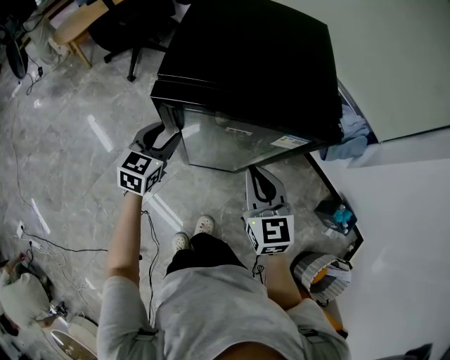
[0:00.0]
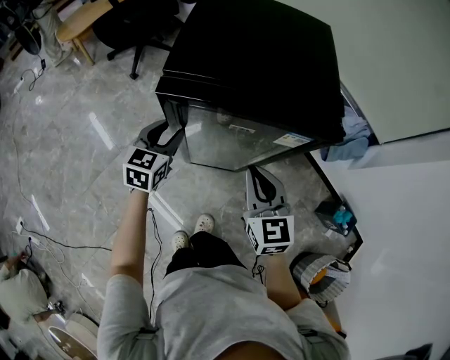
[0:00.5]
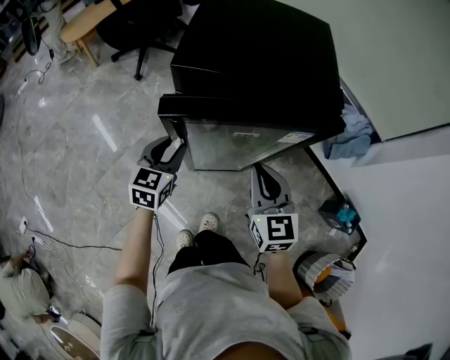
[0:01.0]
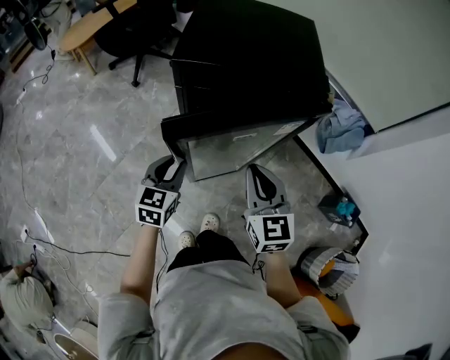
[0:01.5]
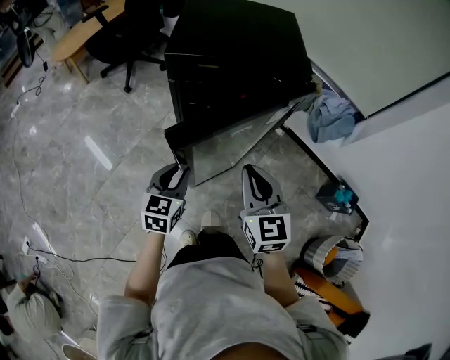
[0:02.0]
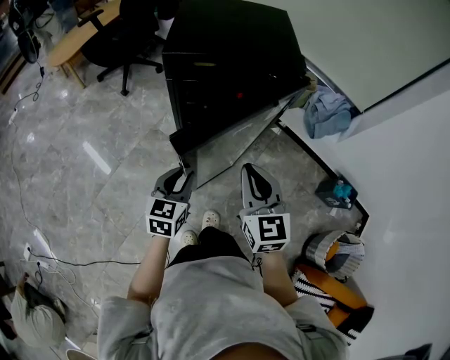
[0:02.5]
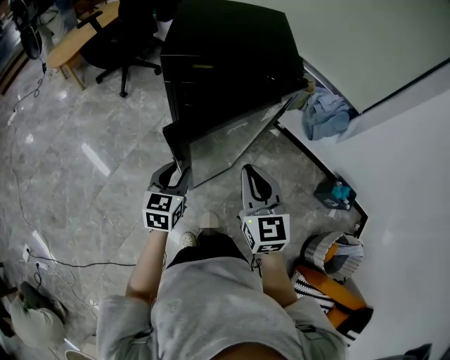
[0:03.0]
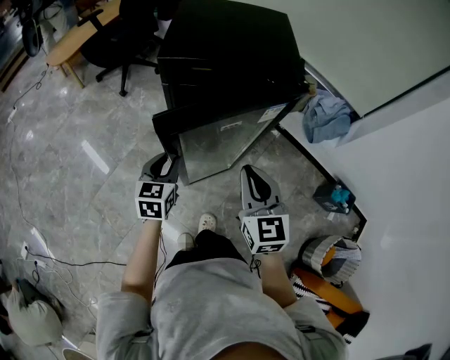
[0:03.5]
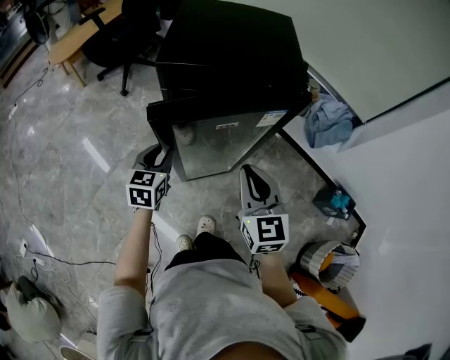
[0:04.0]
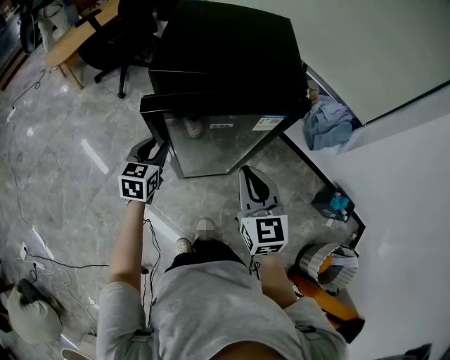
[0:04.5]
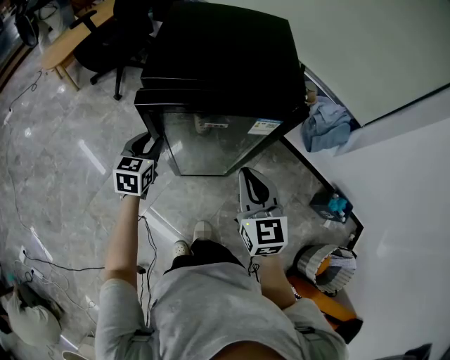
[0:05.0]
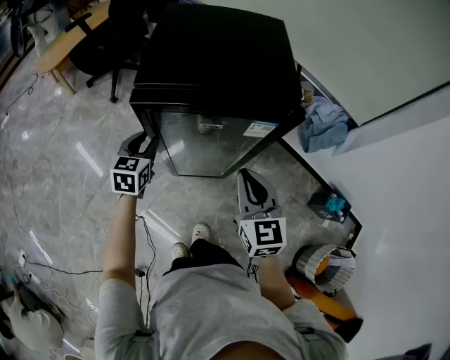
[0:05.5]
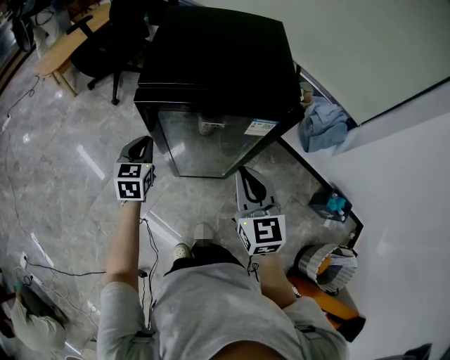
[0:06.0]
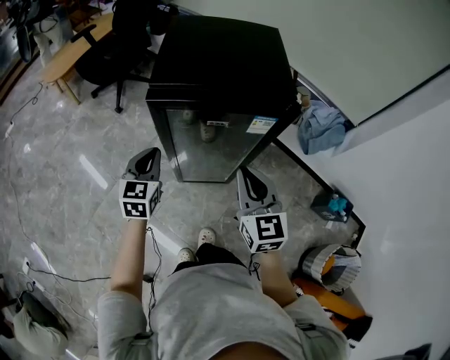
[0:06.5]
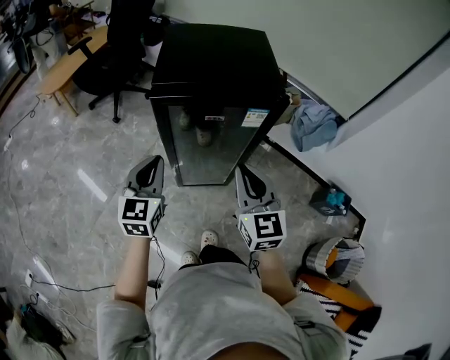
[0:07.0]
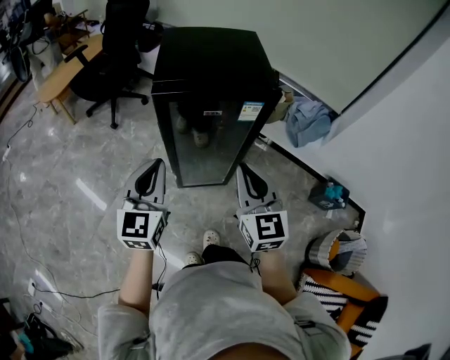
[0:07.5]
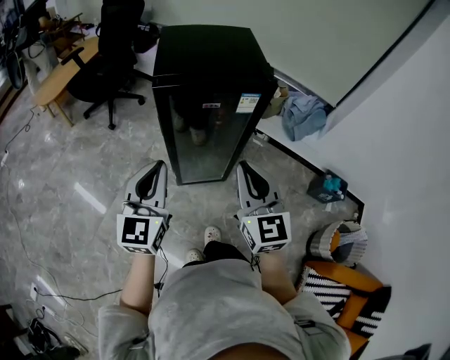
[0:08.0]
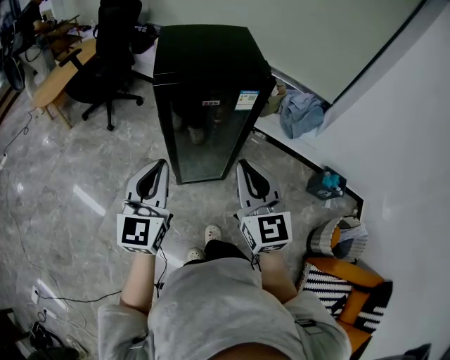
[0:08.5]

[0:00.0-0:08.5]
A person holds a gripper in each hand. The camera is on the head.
0:00.0 to 0:02.0: The right gripper moves backward, approximately 15 cm; the left gripper shifts roughly 20 cm backward.
0:02.0 to 0:04.0: The left gripper shifts some 10 cm forward.
0:04.0 to 0:06.5: The left gripper is displaced upward by some 5 cm, travels forward and back again, some 10 cm each way, and closes.
0:06.5 to 0:08.5: Both grippers move backward and upward, approximately 20 cm. The left gripper changes its angle by approximately 30 degrees.

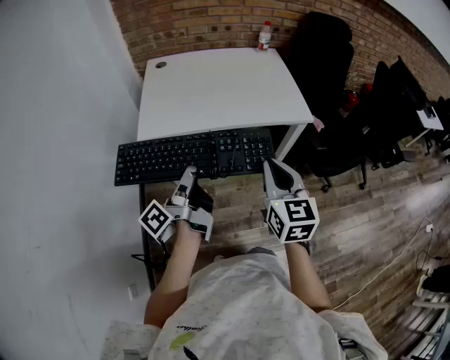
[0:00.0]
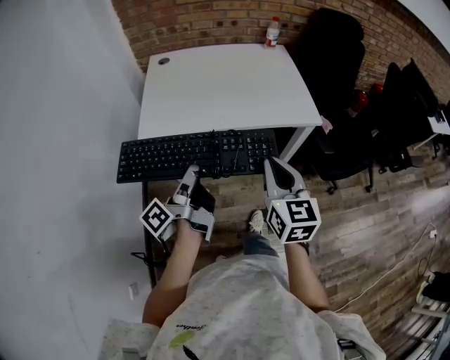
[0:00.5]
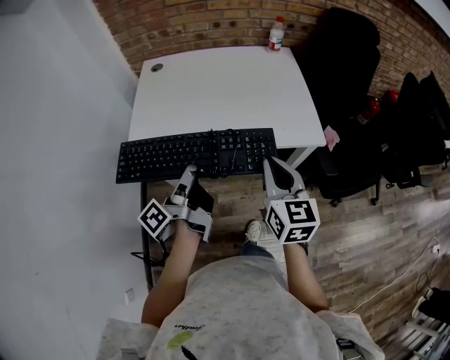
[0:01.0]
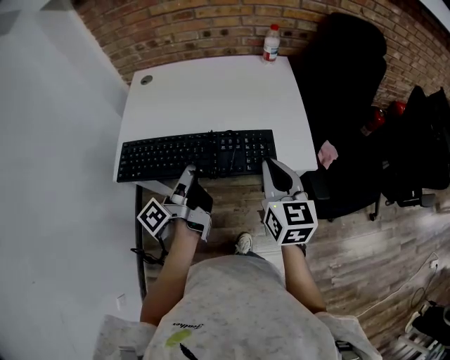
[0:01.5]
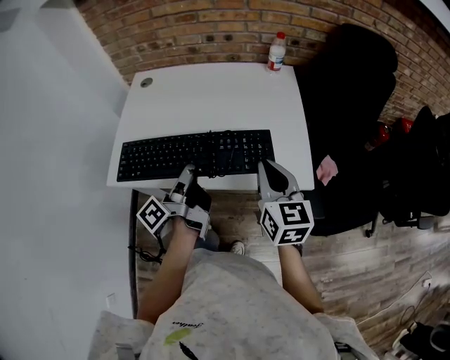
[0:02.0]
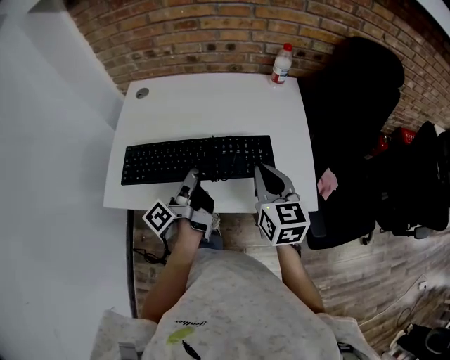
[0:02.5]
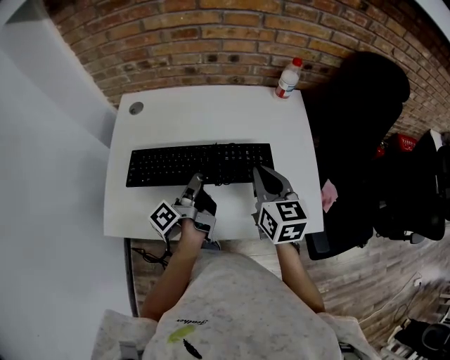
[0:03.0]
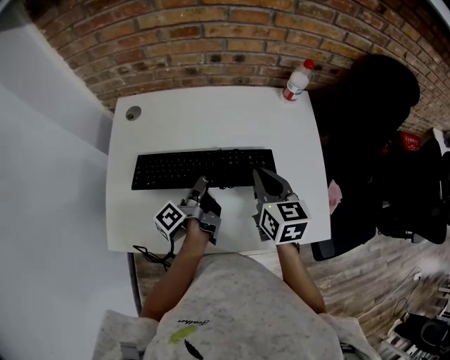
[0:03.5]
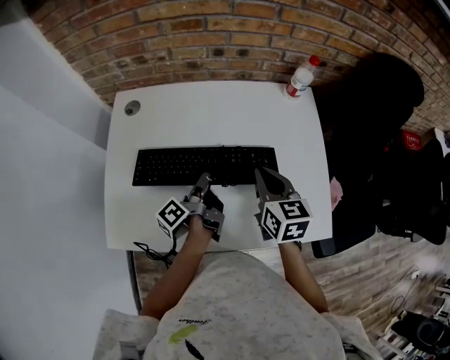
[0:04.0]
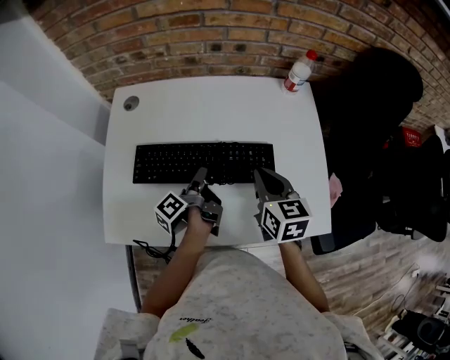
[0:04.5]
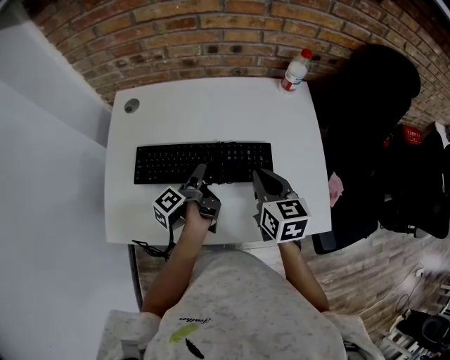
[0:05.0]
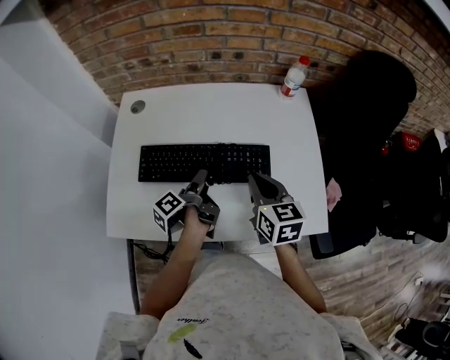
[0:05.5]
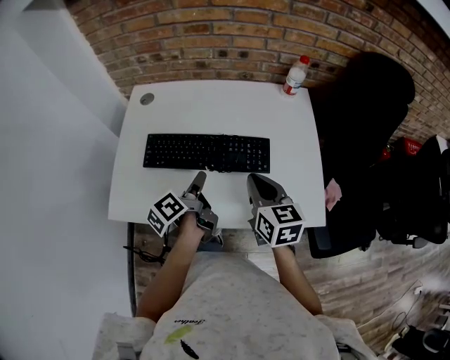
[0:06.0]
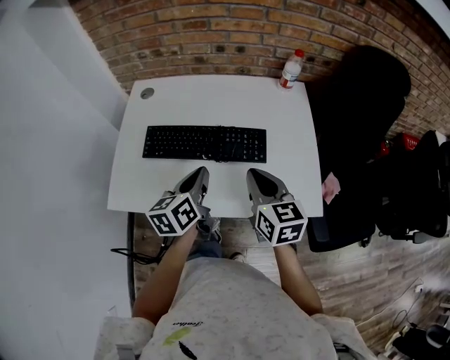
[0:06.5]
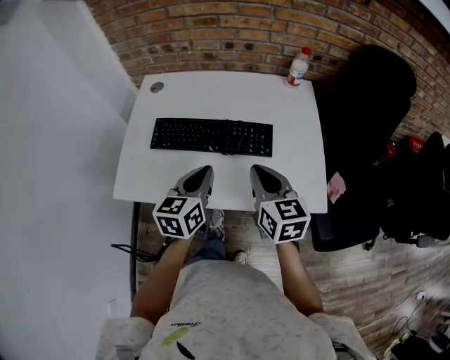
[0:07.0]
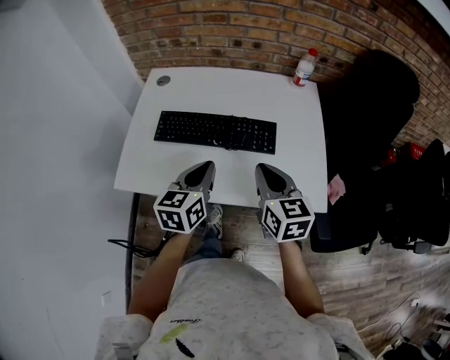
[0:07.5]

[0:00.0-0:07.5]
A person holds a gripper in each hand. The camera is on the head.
0:00.0 to 0:02.0: The right gripper ends up roughly 40 cm from where it was.
0:02.0 to 0:04.0: The right gripper shifts by roughly 30 cm.
0:04.0 to 0:05.5: The right gripper changes place by roughly 5 cm.
0:05.5 to 0:07.5: The right gripper ends up approximately 15 cm from where it was.

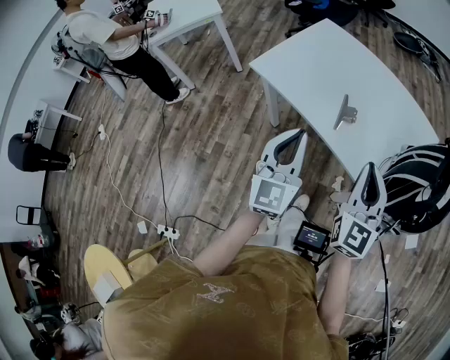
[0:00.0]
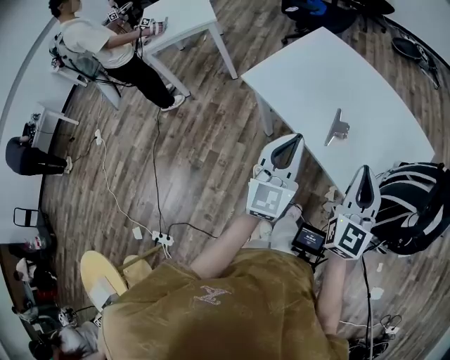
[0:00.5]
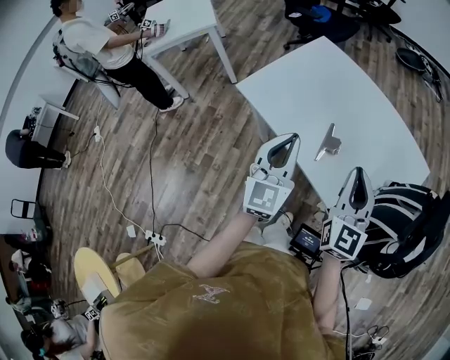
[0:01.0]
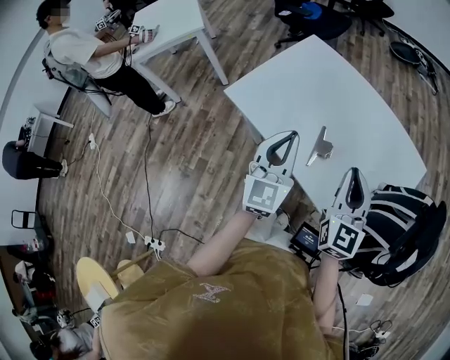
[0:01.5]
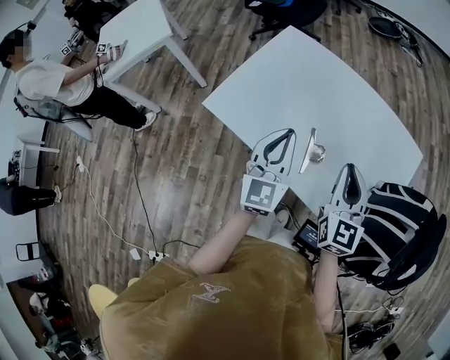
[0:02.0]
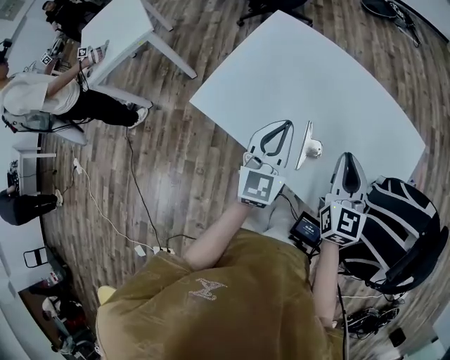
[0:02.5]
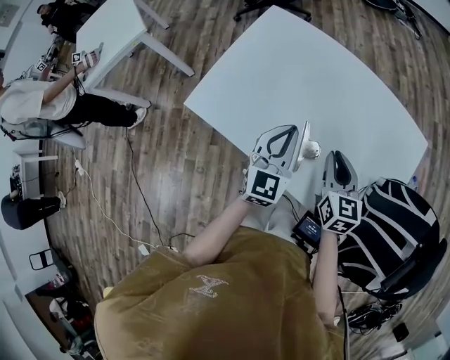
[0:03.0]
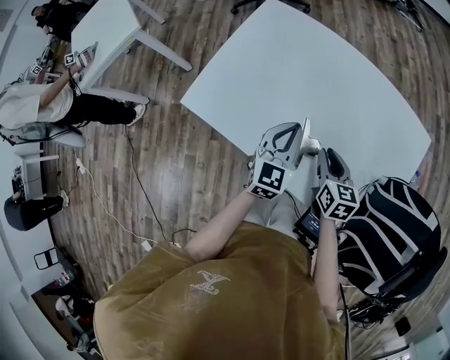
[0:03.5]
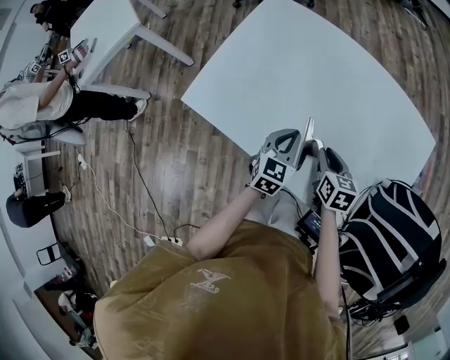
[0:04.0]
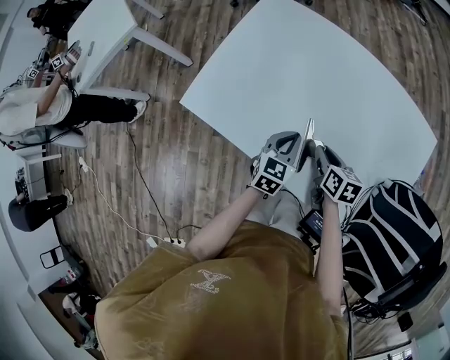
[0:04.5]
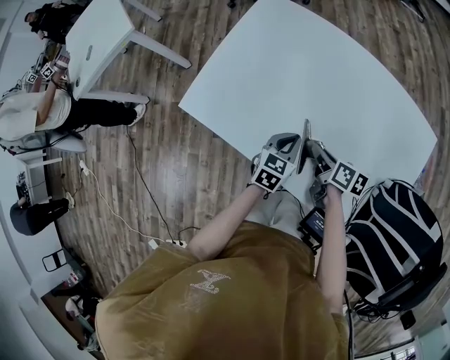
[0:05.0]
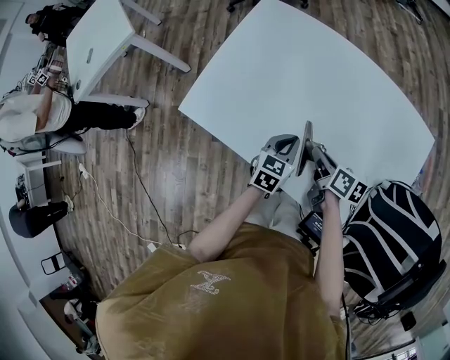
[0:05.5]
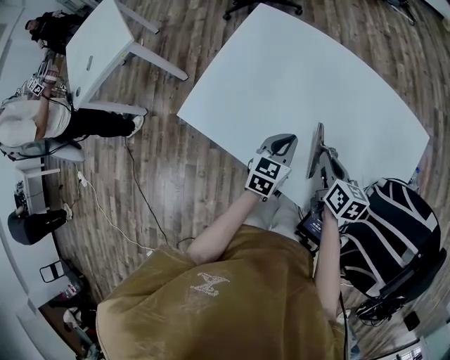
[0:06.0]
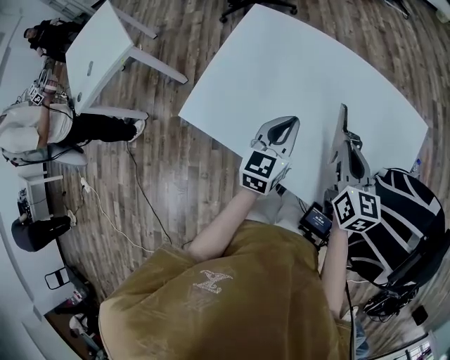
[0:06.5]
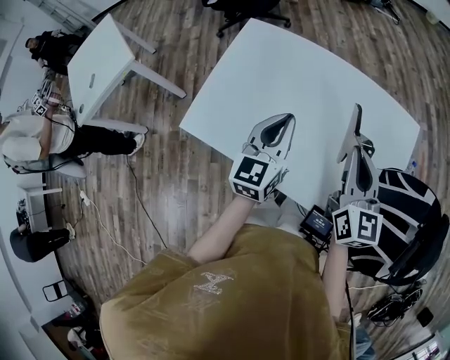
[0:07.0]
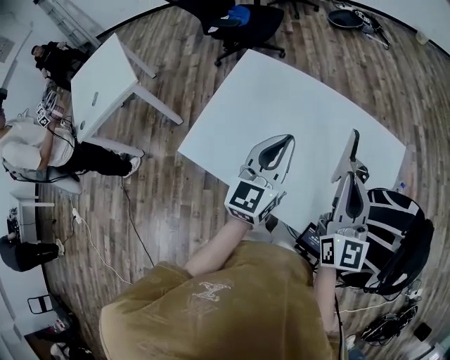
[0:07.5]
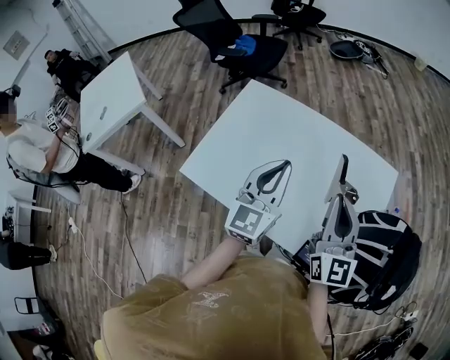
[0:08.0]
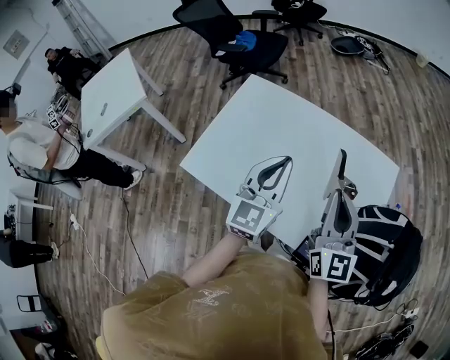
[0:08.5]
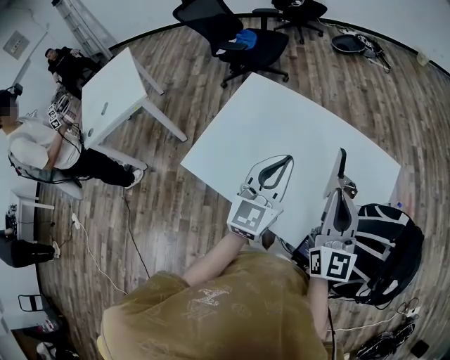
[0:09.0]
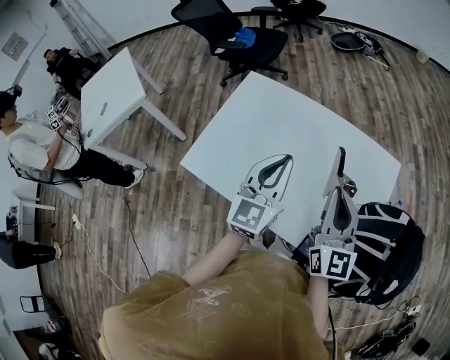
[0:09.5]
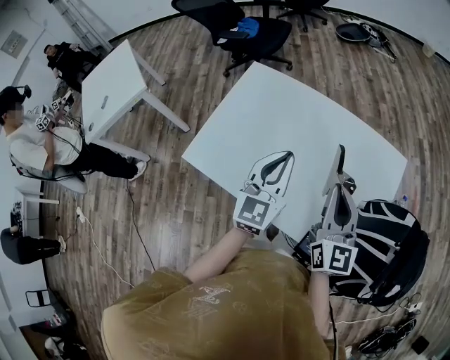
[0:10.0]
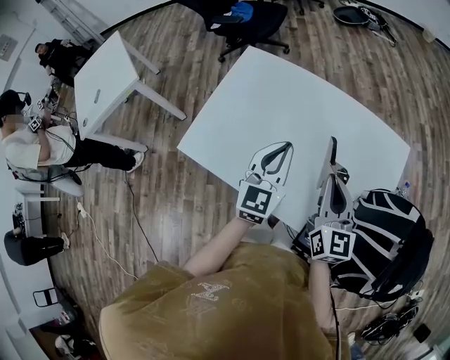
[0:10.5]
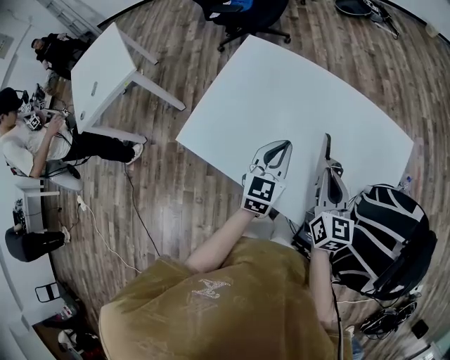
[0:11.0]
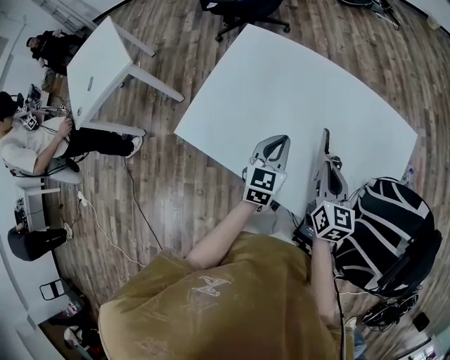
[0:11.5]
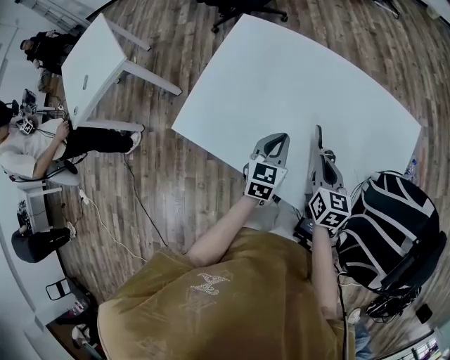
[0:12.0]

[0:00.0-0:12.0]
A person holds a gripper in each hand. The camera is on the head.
0:00.0 to 0:02.0: The two grippers go approximately 25 cm forward.
0:02.0 to 0:04.0: Both grippers move downward, approximately 25 cm. The right gripper angles its fingers downward, by about 30 degrees. Meanwhile the left gripper changes its angle by about 30 degrees.
0:04.0 to 0:06.0: The right gripper is displaced upward by approximately 5 cm.
0:06.0 to 0:08.0: The two grippers go roughly 30 cm upward. The right gripper tips its fingers upward by about 40 degrees; the left gripper tilts its fingers roughly 30 degrees upward.
0:08.0 to 0:10.0: There are only small adjustments of the grippers.
0:10.0 to 0:12.0: The two grippers go approximately 20 cm downward. The left gripper turns by approximately 30 degrees. Meanwhile the right gripper swivels roughly 30 degrees.
